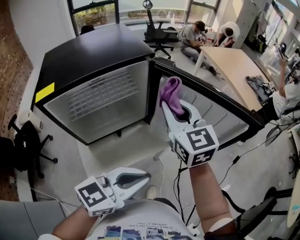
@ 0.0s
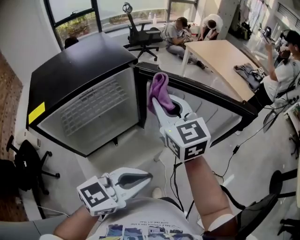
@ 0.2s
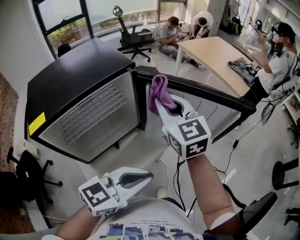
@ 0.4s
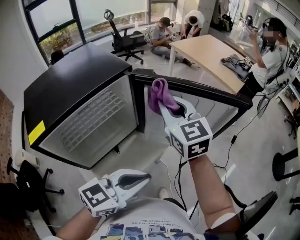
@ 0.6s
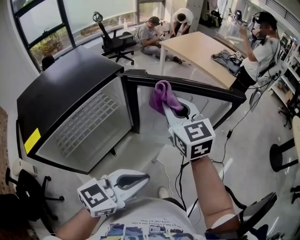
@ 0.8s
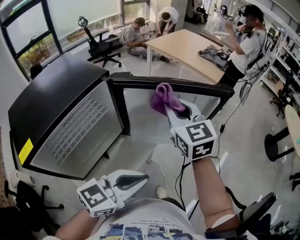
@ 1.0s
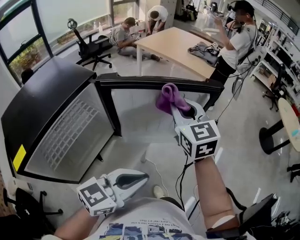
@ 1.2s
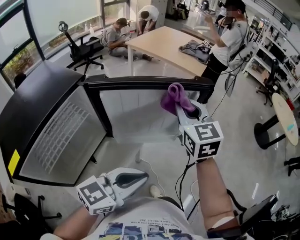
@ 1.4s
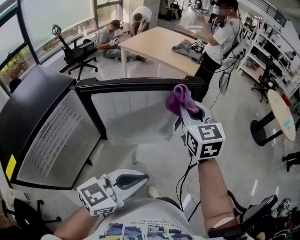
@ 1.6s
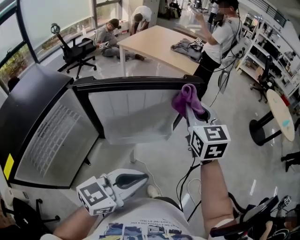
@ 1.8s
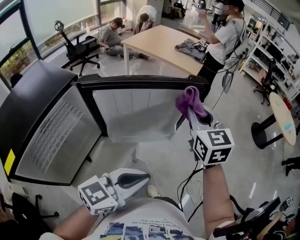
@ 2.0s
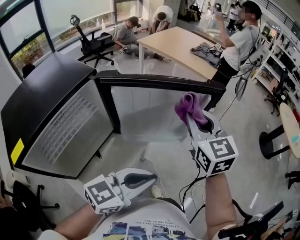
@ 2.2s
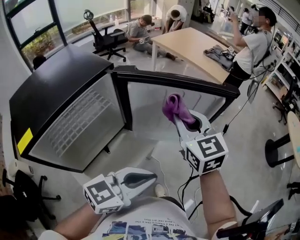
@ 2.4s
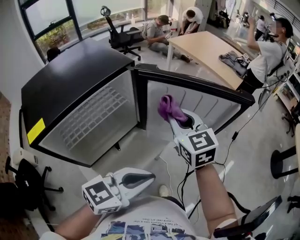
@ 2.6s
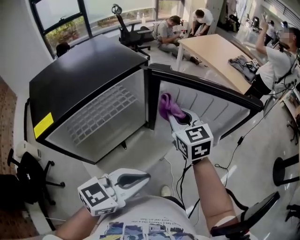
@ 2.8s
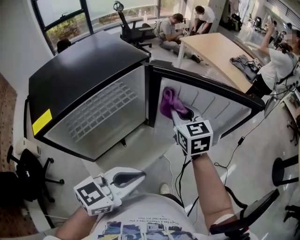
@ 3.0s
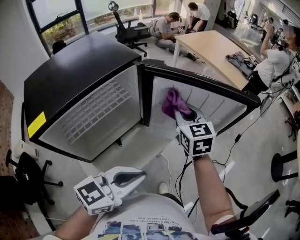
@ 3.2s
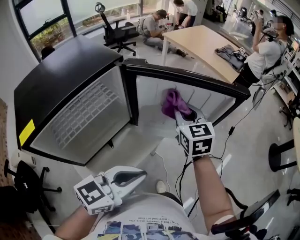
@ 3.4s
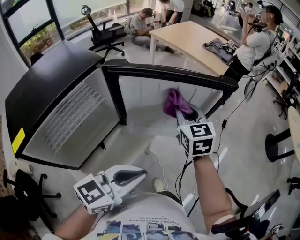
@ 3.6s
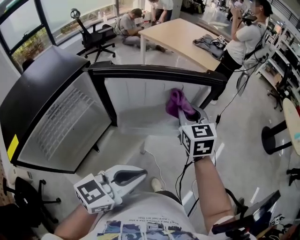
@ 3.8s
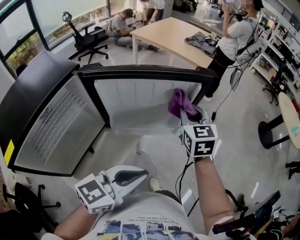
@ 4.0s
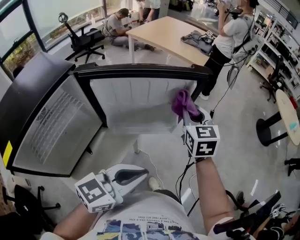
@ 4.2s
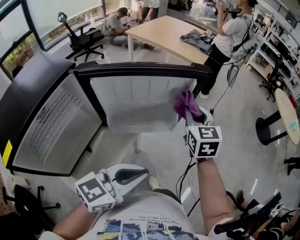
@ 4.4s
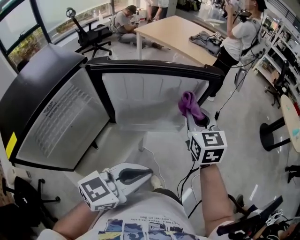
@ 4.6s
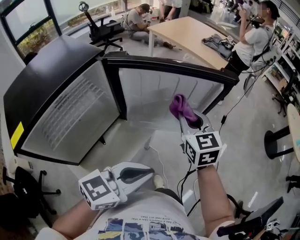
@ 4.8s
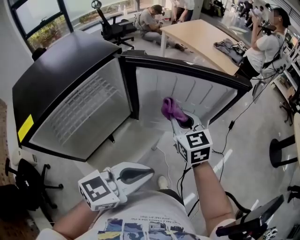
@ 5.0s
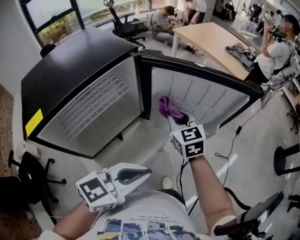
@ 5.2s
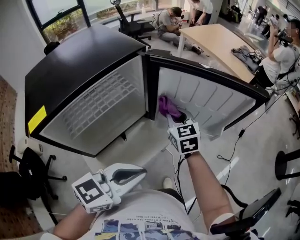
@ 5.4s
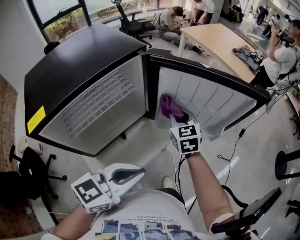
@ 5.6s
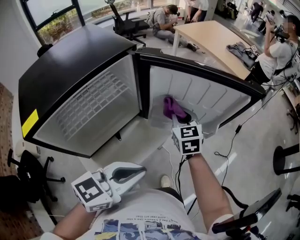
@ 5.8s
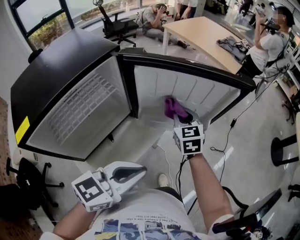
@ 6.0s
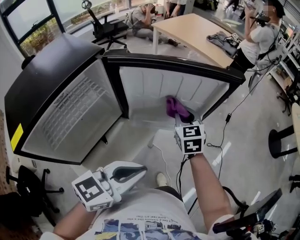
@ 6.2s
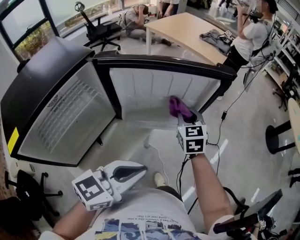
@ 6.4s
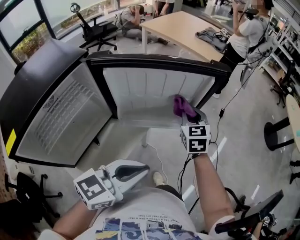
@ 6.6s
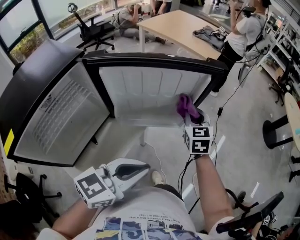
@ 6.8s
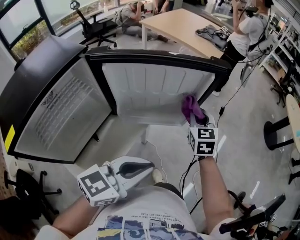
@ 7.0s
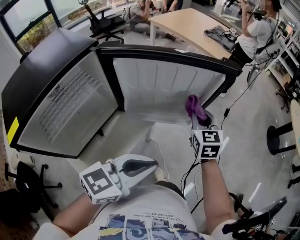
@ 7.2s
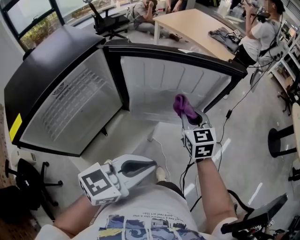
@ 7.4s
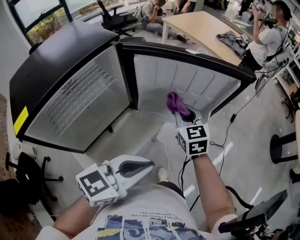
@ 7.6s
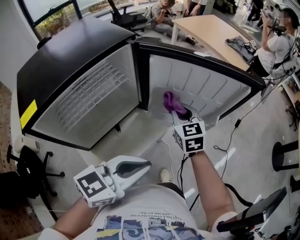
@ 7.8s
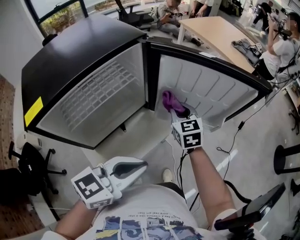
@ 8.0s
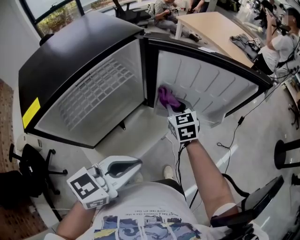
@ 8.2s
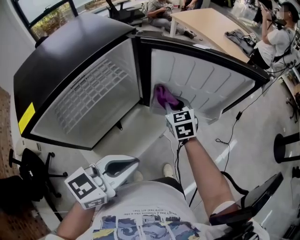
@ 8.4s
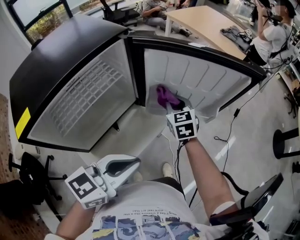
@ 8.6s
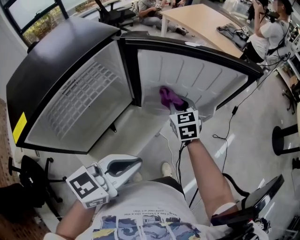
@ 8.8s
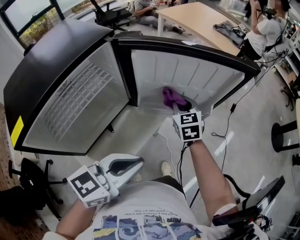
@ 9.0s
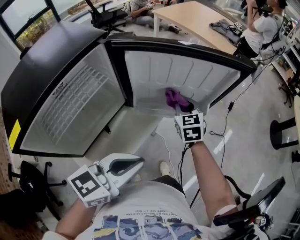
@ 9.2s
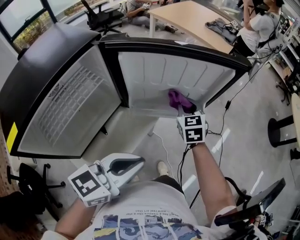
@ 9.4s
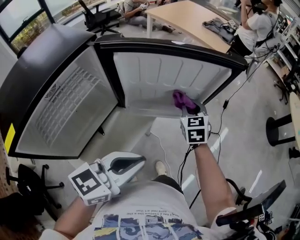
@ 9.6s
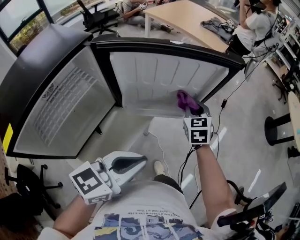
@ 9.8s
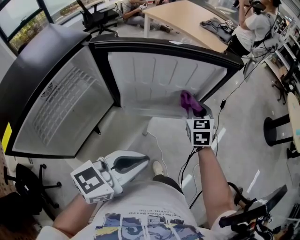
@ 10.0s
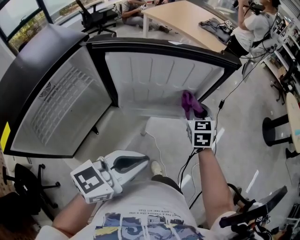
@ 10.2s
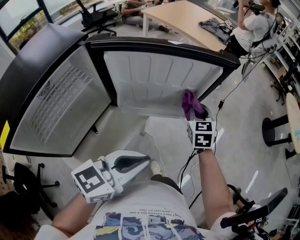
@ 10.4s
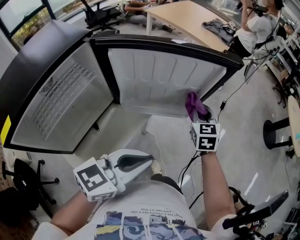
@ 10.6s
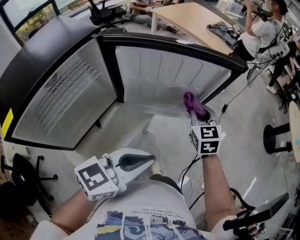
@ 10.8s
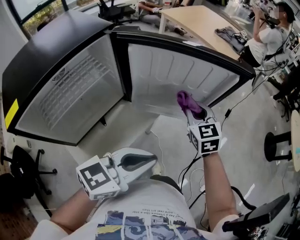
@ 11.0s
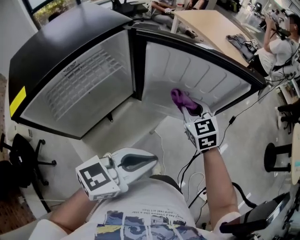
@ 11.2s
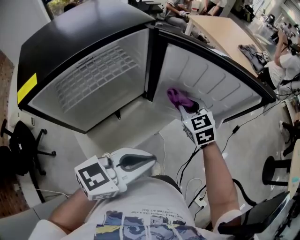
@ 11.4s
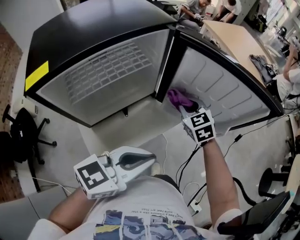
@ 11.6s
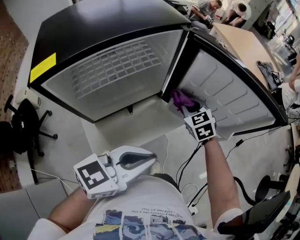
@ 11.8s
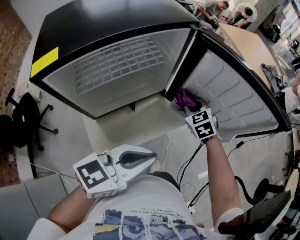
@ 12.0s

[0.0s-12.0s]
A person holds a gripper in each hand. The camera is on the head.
0.0s to 1.6s: The right gripper changes place by roughly 25 cm, and changes its angle by some 50 degrees. The left gripper rotates approximately 40 degrees.
1.6s to 3.0s: The left gripper changes place by roughly 10 cm, and rotates approximately 30 degrees. The right gripper moves some 25 cm, and rotates about 30 degrees.
3.0s to 4.4s: The right gripper changes place by about 25 cm, and rotates roughly 30 degrees. The left gripper shifts by approximately 15 cm, and rotates some 20 degrees.
4.4s to 6.0s: The left gripper moves roughly 10 cm; the right gripper shifts by about 20 cm.
6.0s to 7.6s: The right gripper moves about 15 cm to the right and comes back.
7.6s to 9.0s: The right gripper goes approximately 5 cm downward, and moves roughly 10 cm to the left and comes back.
9.0s to 10.4s: The left gripper goes about 5 cm to the right. Meanwhile the right gripper shifts some 15 cm to the right.
10.4s to 12.0s: The left gripper changes place by roughly 10 cm, and swivels about 30 degrees. The right gripper ends up roughly 30 cm from where it was, and rotates some 50 degrees.

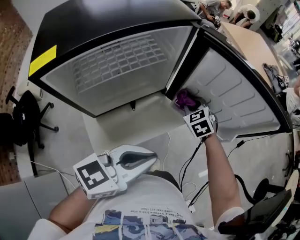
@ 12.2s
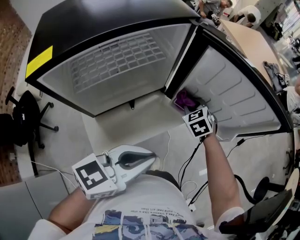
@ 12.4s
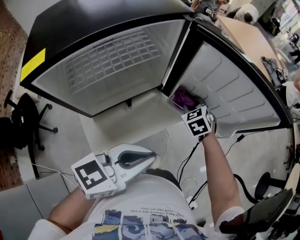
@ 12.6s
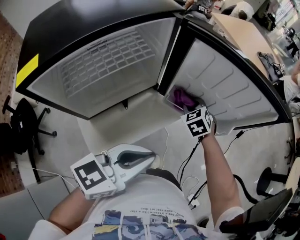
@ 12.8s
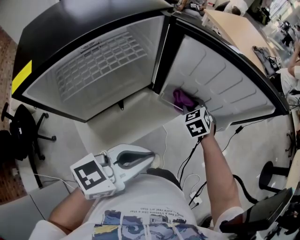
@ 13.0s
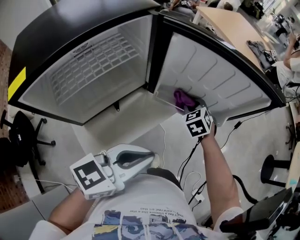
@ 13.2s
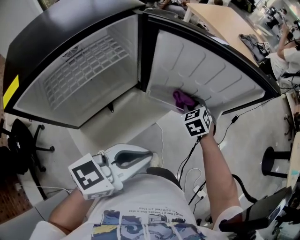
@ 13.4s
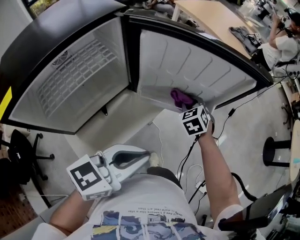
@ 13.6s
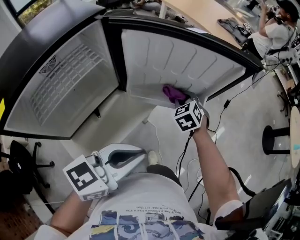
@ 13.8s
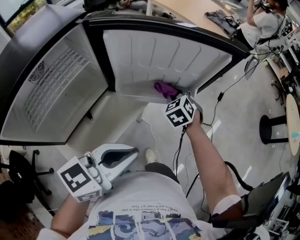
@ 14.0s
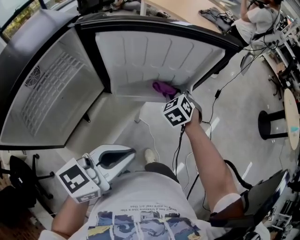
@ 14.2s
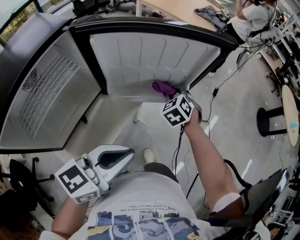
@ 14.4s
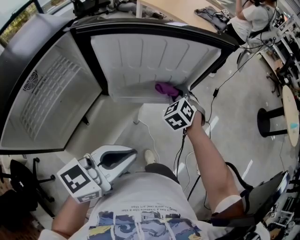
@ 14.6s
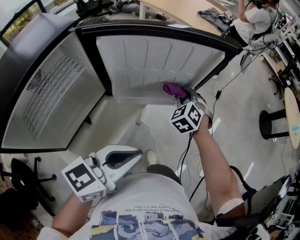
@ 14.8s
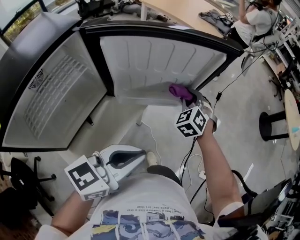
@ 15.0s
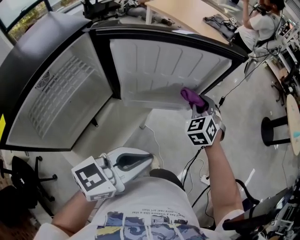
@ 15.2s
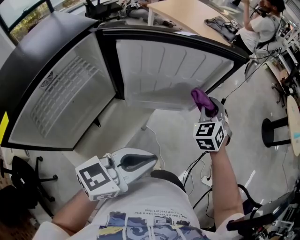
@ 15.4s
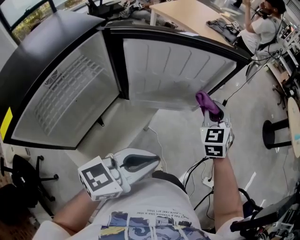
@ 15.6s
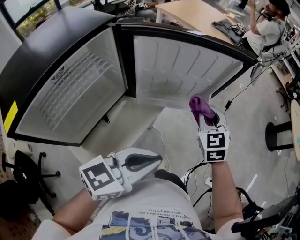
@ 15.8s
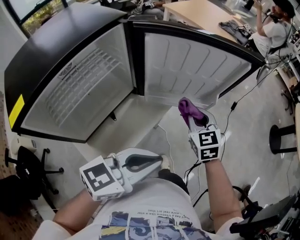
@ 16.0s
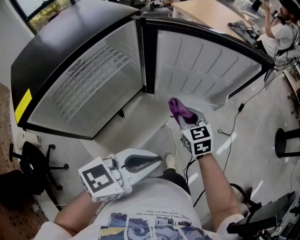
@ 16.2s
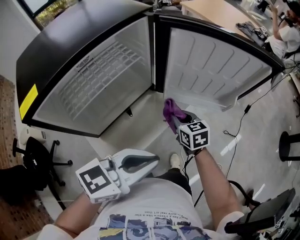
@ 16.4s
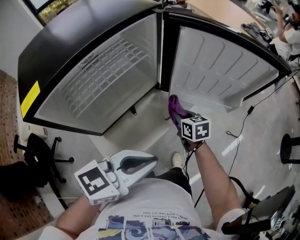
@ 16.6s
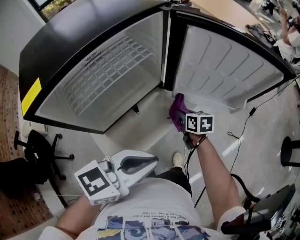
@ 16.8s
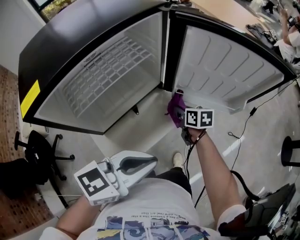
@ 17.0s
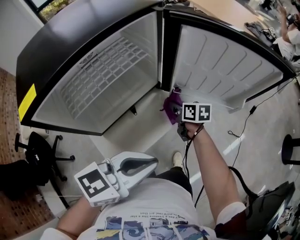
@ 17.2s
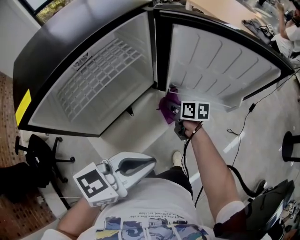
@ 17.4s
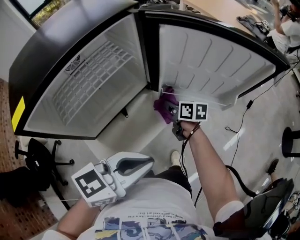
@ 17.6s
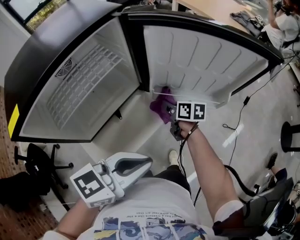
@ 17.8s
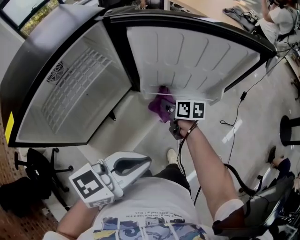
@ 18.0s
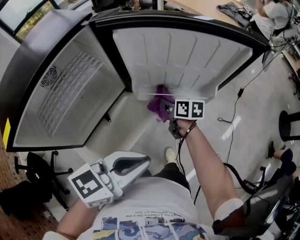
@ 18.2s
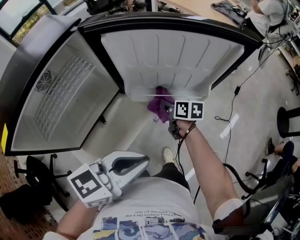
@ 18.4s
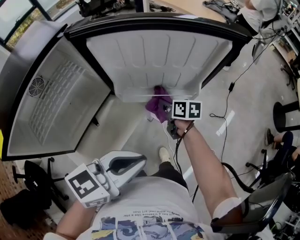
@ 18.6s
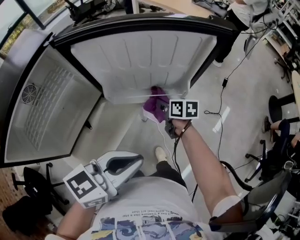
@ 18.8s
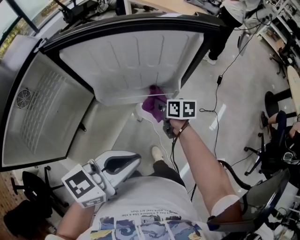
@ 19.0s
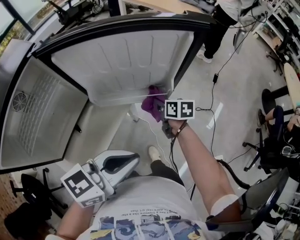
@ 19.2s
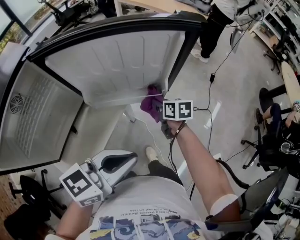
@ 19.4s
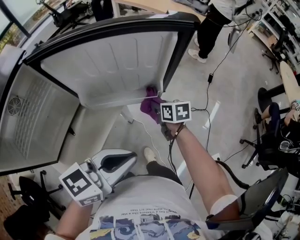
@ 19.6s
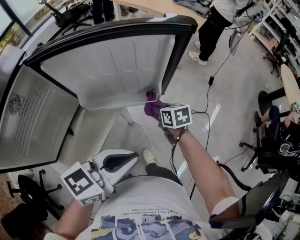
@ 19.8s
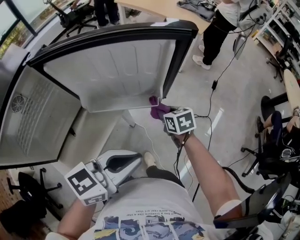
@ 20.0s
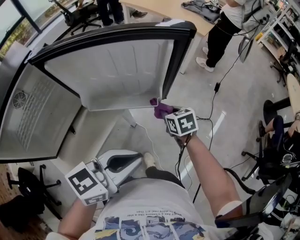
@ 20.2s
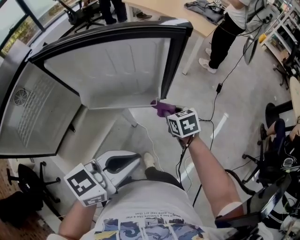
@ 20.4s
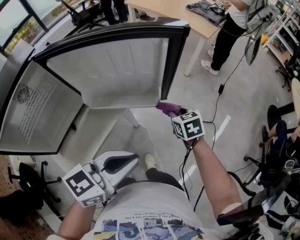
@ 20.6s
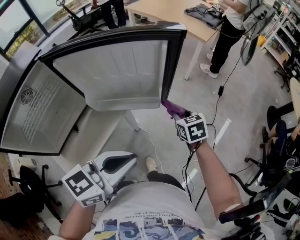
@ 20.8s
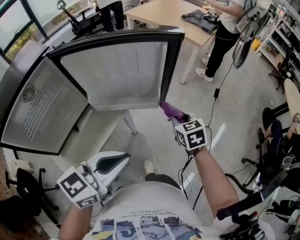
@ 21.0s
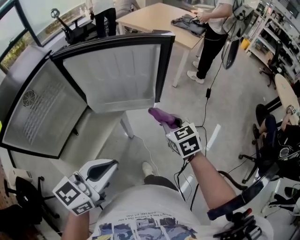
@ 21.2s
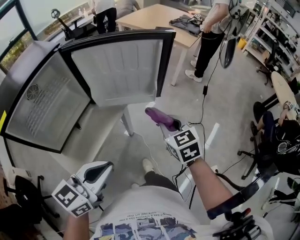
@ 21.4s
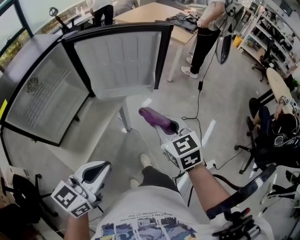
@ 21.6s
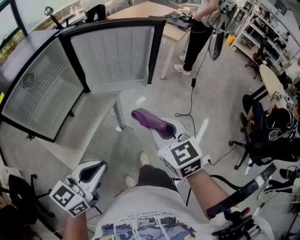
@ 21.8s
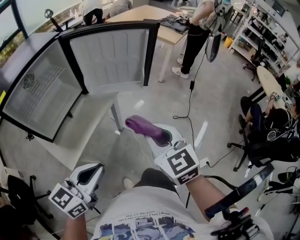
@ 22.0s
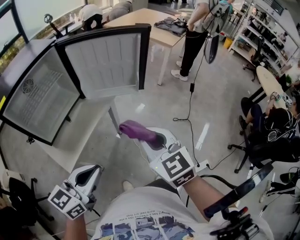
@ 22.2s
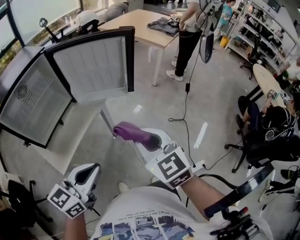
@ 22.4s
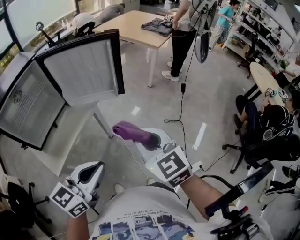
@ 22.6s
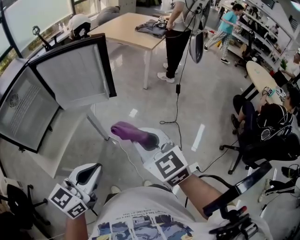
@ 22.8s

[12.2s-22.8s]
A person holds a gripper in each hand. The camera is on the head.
12.2s to 13.8s: The right gripper moves to the right, about 15 cm, and rotates approximately 30 degrees. Meanwhile the left gripper heads to the right, covering roughly 5 cm.
13.8s to 15.2s: The right gripper heads to the right and upward, covering some 10 cm, and swivels approximately 20 degrees.
15.2s to 16.8s: The left gripper shifts by approximately 15 cm, while the right gripper shifts by roughly 30 cm, and rotates roughly 70 degrees.
16.8s to 18.2s: The right gripper heads to the right and forward, covering approximately 10 cm. The left gripper travels to the right by approximately 10 cm.
18.2s to 19.8s: The right gripper goes roughly 20 cm to the right, while the left gripper is displaced to the right by roughly 10 cm.
19.8s to 21.2s: The left gripper heads backward, covering some 10 cm. The right gripper goes about 15 cm upward and backward, and swivels roughly 30 degrees.
21.2s to 22.8s: The left gripper shifts roughly 15 cm to the right and backward. Meanwhile the right gripper goes some 25 cm backward, upward and to the right, and changes its angle by roughly 20 degrees.

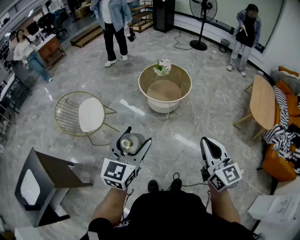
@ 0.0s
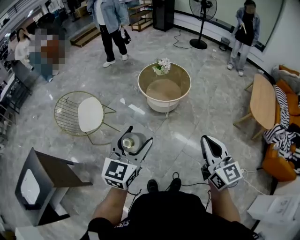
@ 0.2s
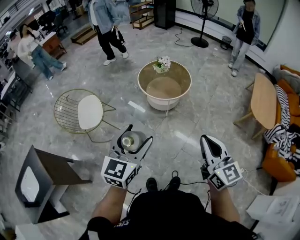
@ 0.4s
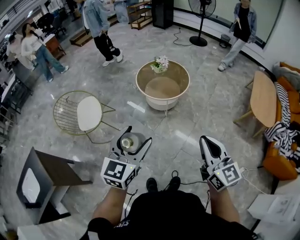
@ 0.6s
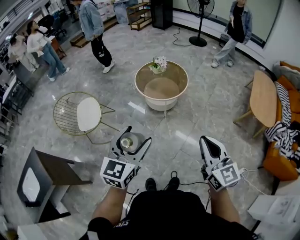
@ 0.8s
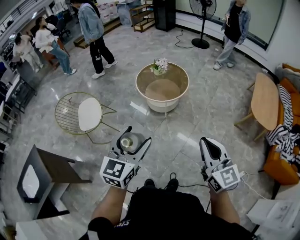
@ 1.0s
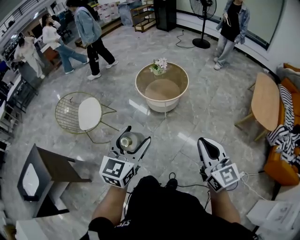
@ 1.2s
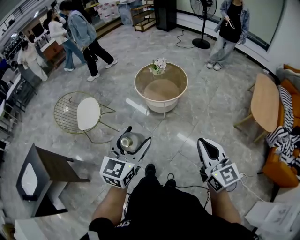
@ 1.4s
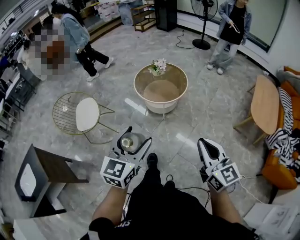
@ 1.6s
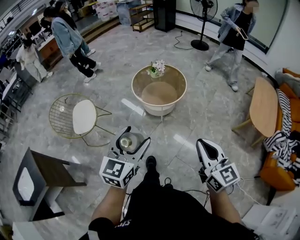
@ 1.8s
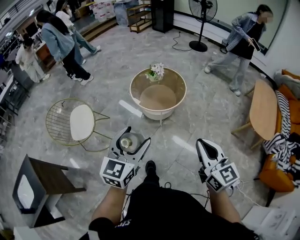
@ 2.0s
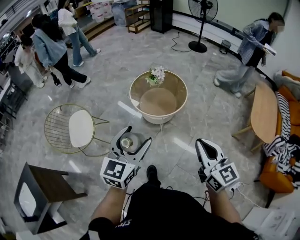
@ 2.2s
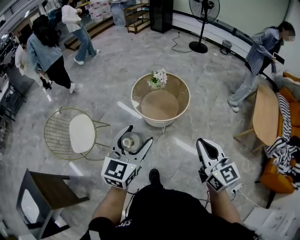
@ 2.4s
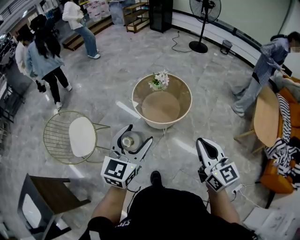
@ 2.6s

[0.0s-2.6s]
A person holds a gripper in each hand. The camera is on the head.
0.0s to 1.2s: Both grippers travel together to the right, approximately 10 cm.
1.2s to 2.6s: The grippers both shift forward by approximately 30 cm.
